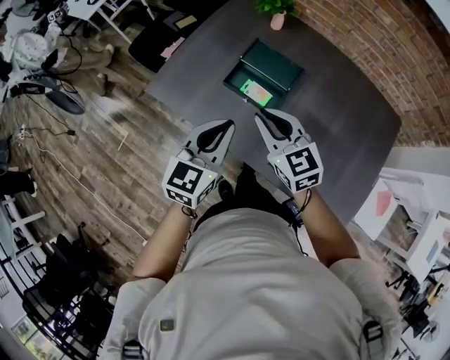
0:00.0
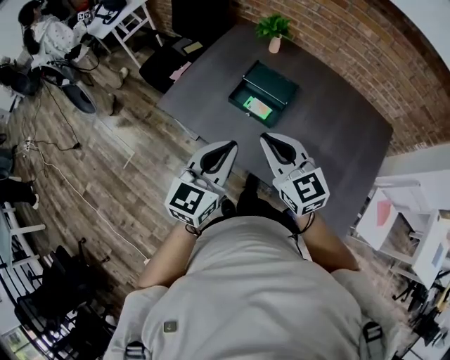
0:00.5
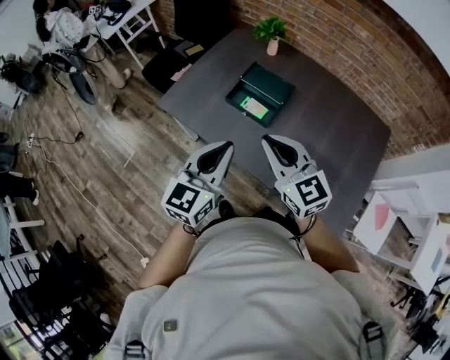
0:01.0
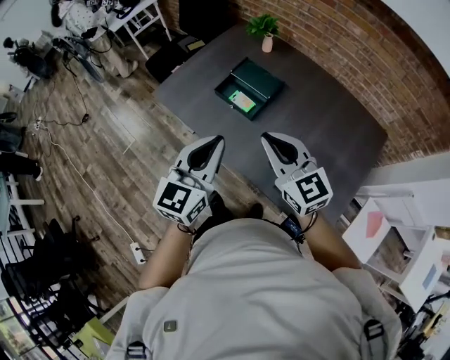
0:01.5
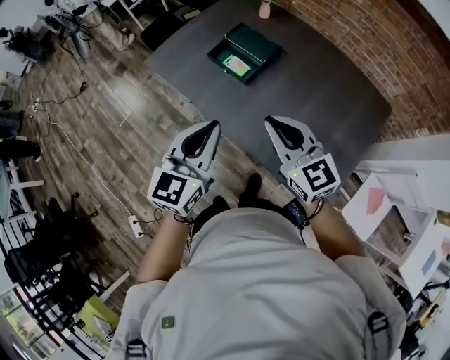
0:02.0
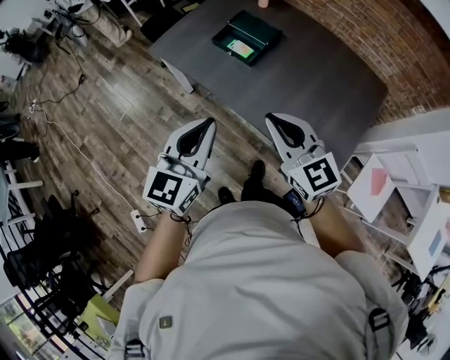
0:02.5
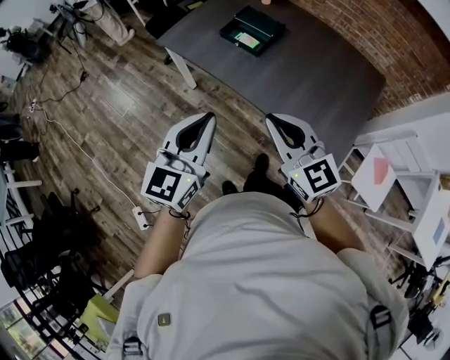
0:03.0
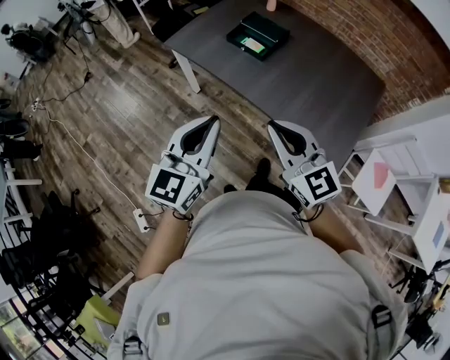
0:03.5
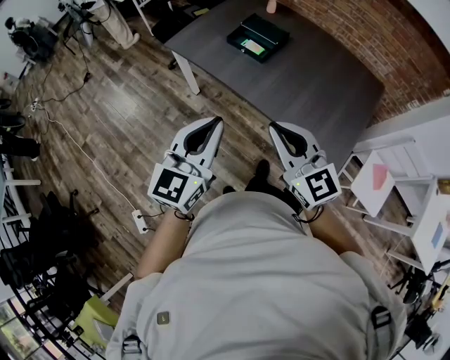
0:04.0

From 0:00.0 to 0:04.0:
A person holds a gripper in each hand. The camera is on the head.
From 0:00.0 to 0:02.0: Both grippers move backward and to the right, some 25 cm.
From 0:02.0 to 0:04.0: Both grippers move backward and to the left, some 25 cm.

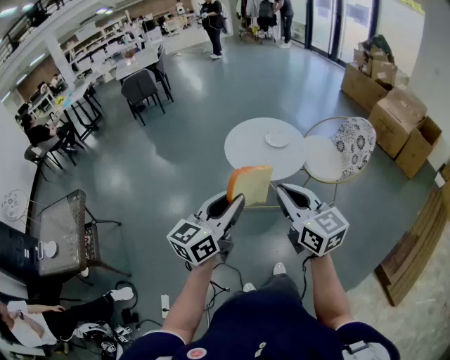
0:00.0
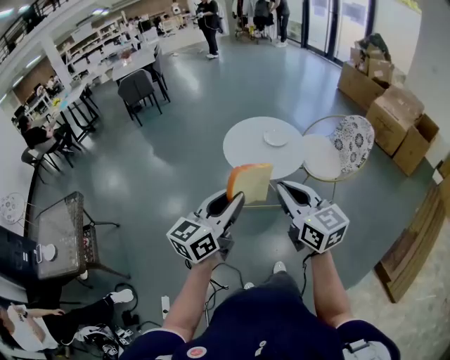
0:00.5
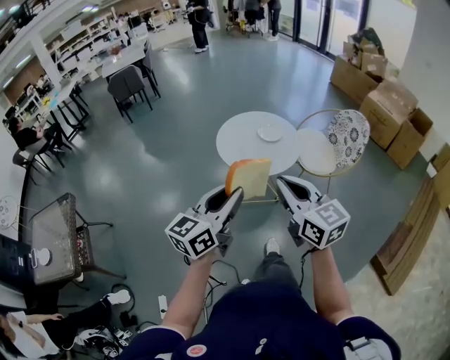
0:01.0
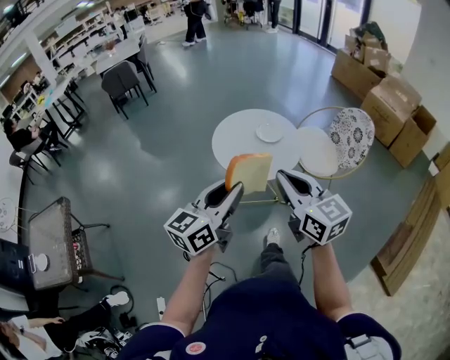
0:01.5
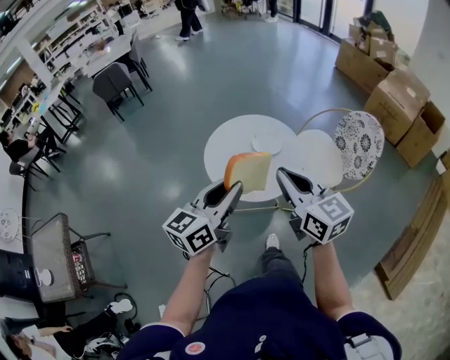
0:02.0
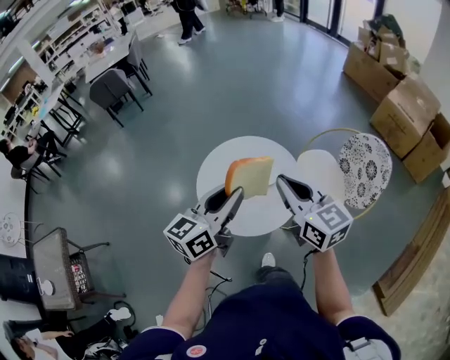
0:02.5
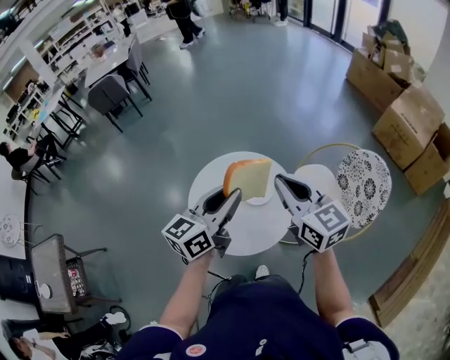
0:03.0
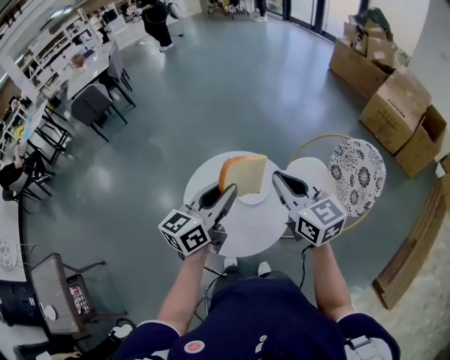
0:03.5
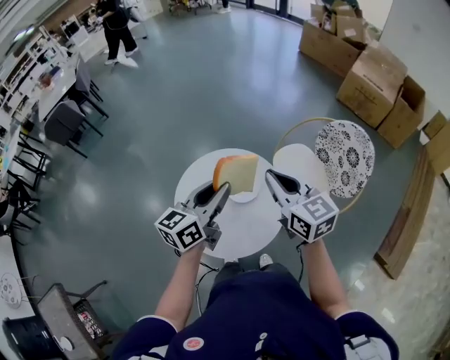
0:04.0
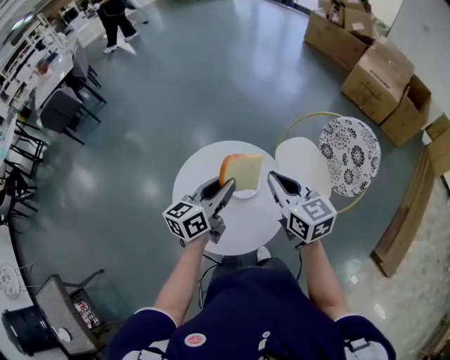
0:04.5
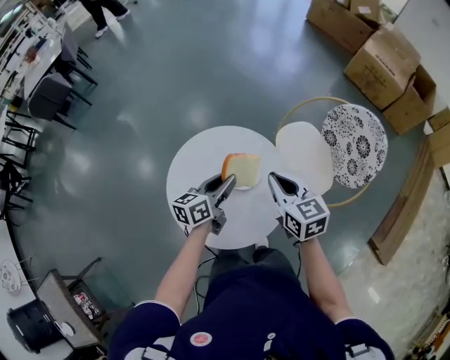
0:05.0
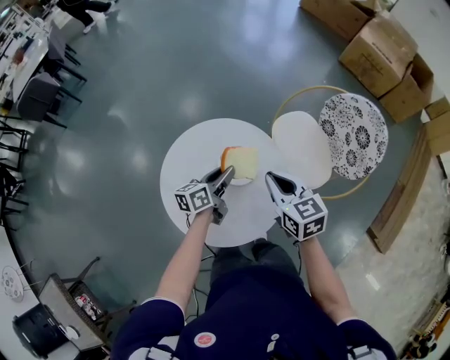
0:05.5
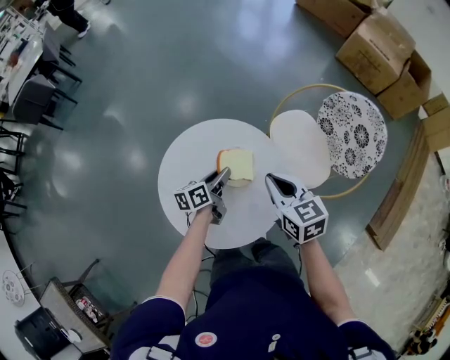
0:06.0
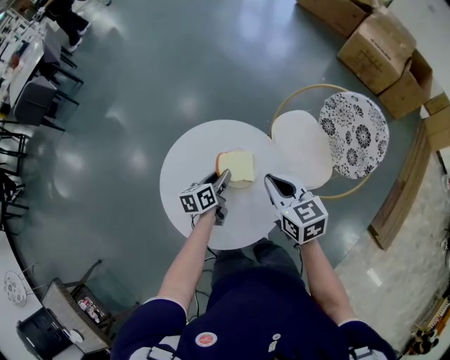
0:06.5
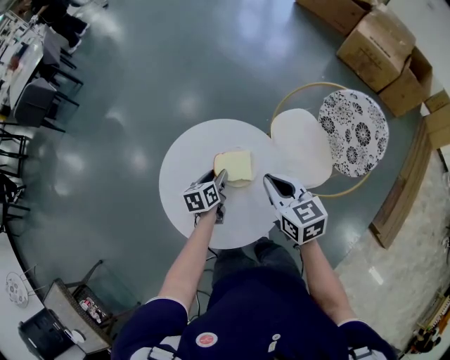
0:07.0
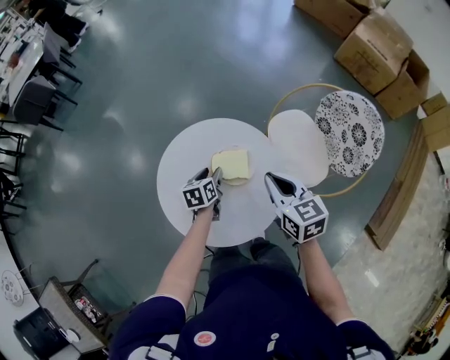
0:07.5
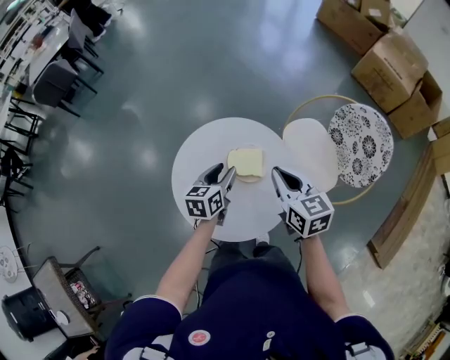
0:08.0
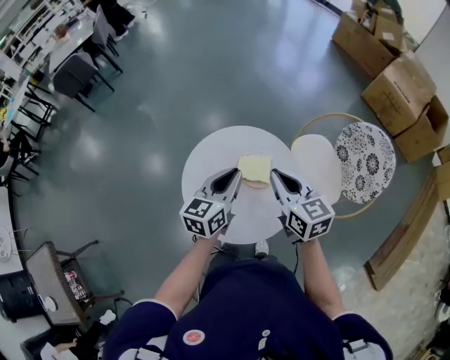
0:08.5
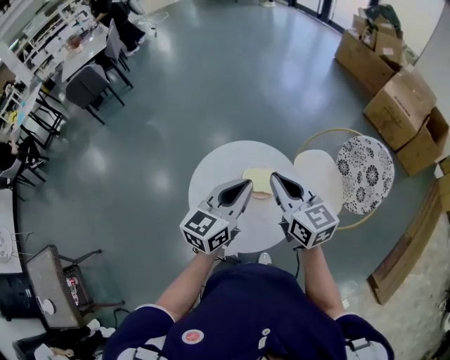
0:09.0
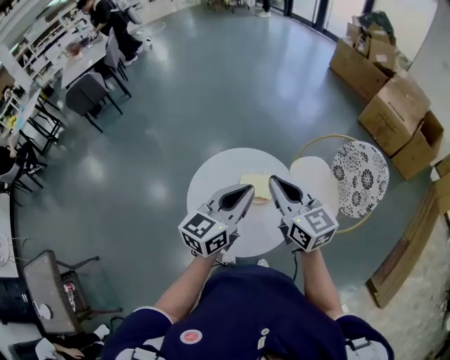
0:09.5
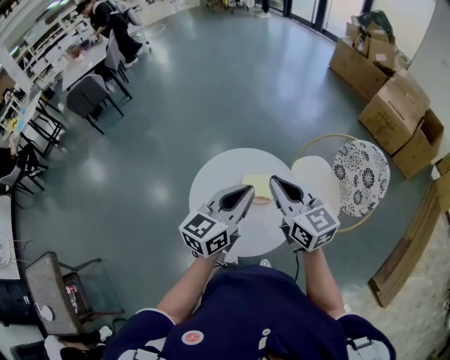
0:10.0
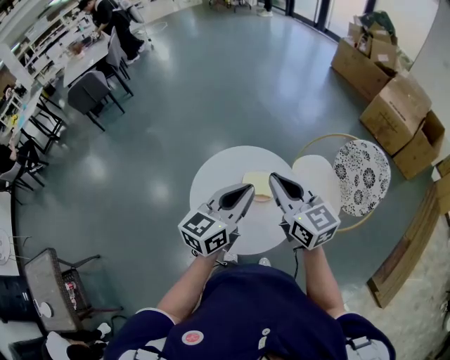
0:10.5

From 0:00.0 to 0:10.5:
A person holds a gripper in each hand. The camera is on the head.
From 0:00.0 to 0:02.0: Both grippers move forward, some 25 cm.
From 0:02.0 to 0:04.0: Both grippers travel together forward, about 25 cm.
From 0:04.0 to 0:06.5: The left gripper goes approximately 30 cm downward, and turns by roughly 40 degrees. Meanwhile the right gripper travels downward by about 15 cm, and changes its angle by some 20 degrees.
From 0:06.5 to 0:08.5: The left gripper travels upward by about 20 cm, and rotates some 30 degrees, while the right gripper goes approximately 5 cm upward.
From 0:08.5 to 0:10.5: The left gripper shifts some 10 cm upward and backward. Meanwhile the right gripper shifts approximately 10 cm upward.

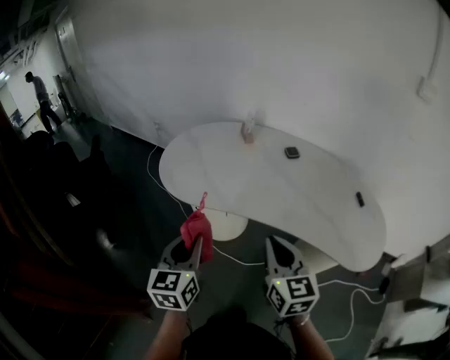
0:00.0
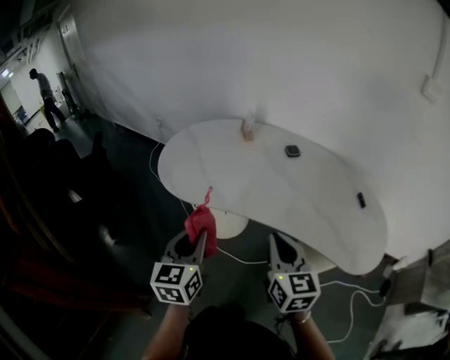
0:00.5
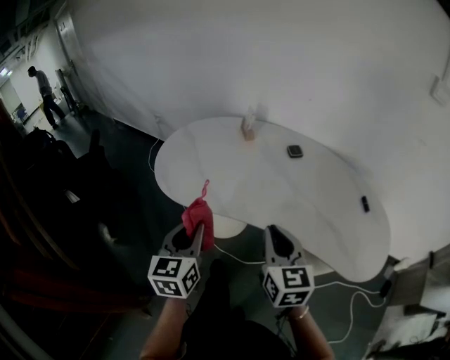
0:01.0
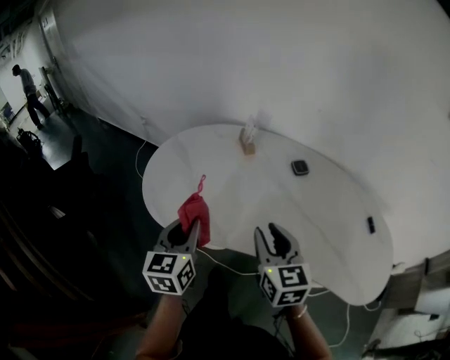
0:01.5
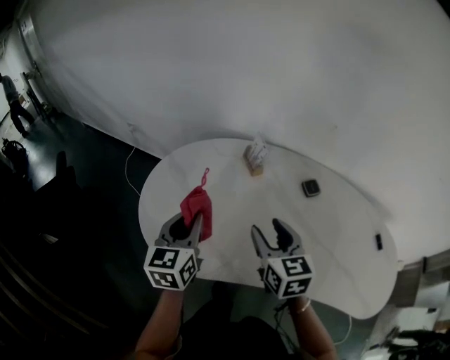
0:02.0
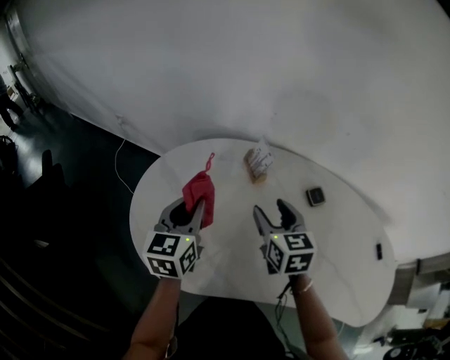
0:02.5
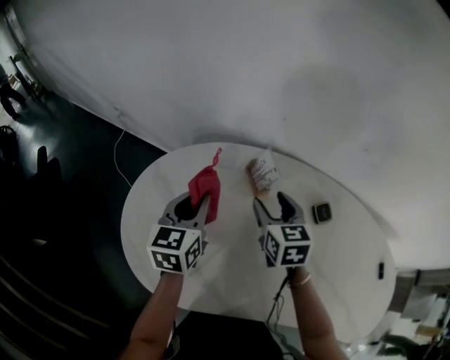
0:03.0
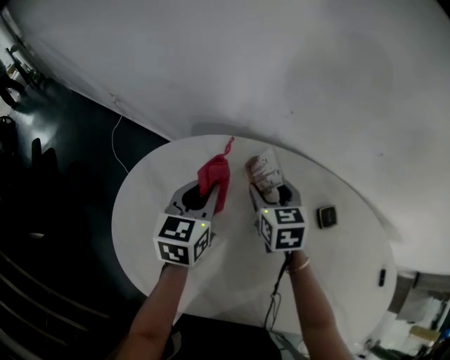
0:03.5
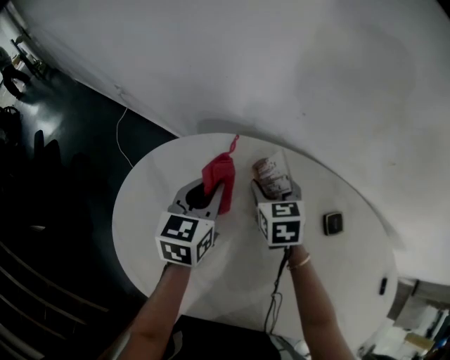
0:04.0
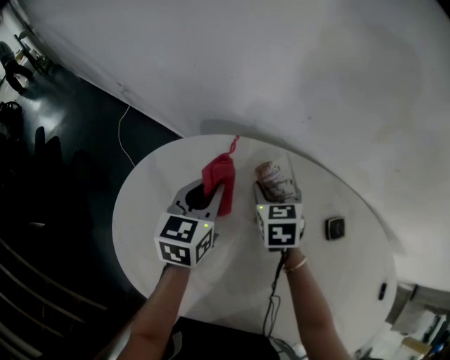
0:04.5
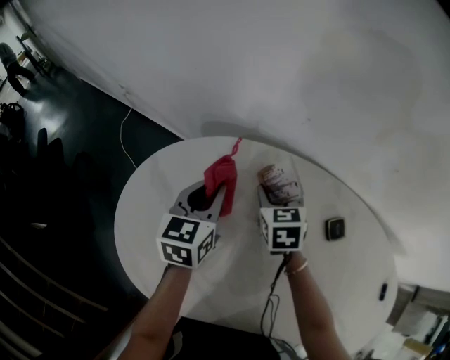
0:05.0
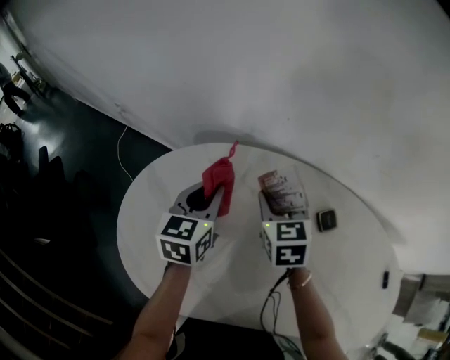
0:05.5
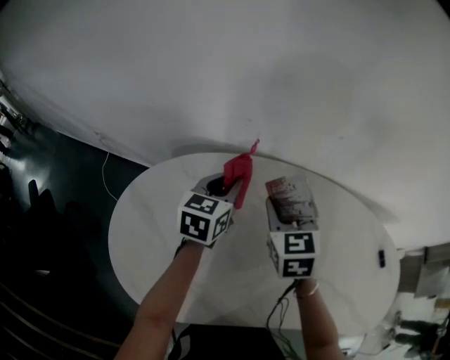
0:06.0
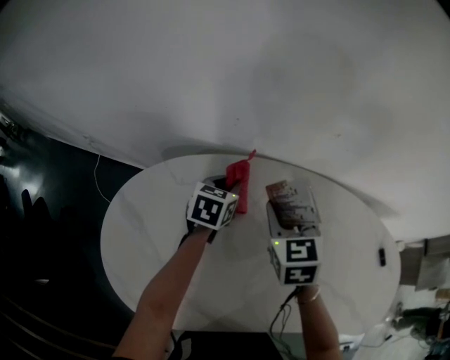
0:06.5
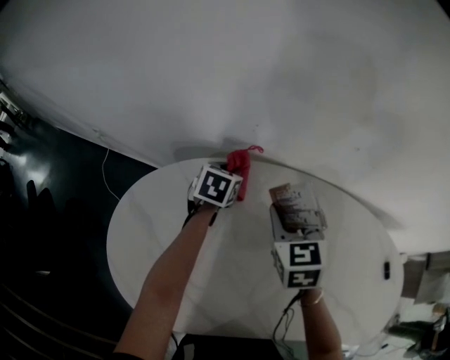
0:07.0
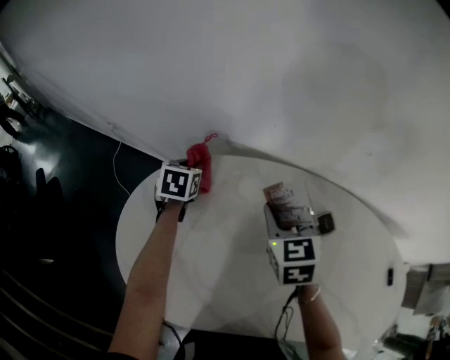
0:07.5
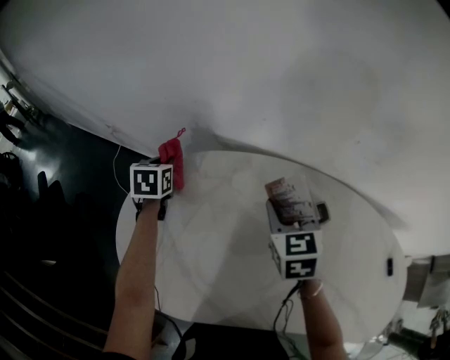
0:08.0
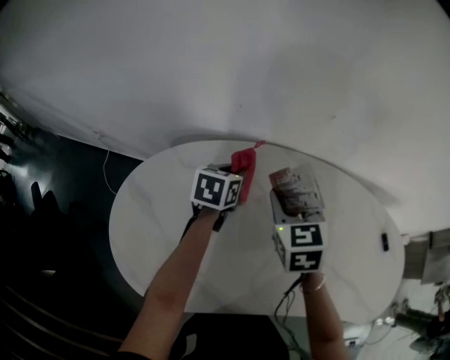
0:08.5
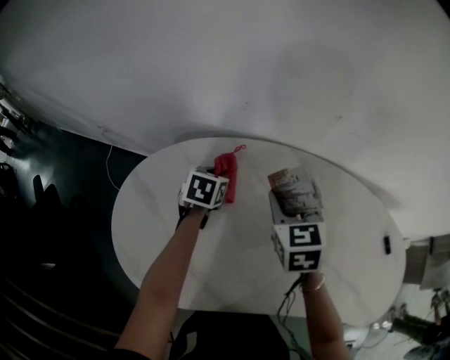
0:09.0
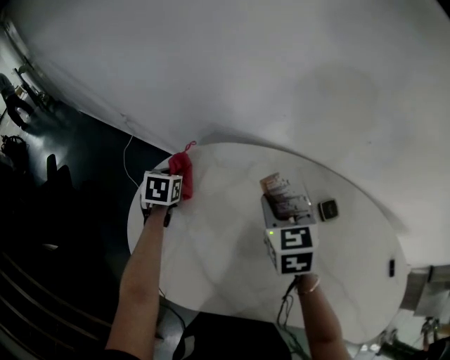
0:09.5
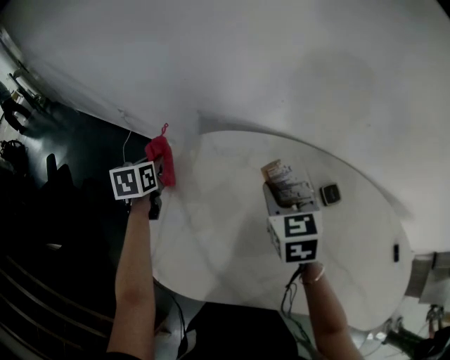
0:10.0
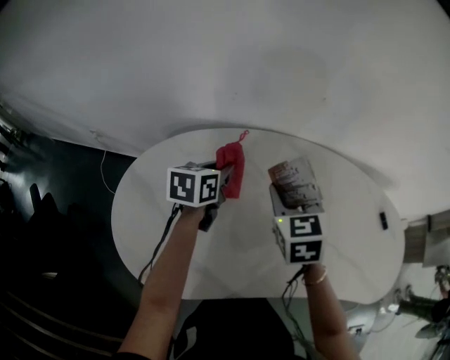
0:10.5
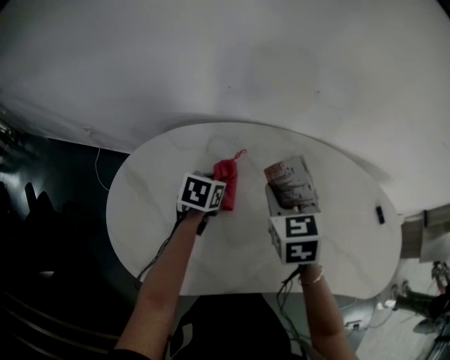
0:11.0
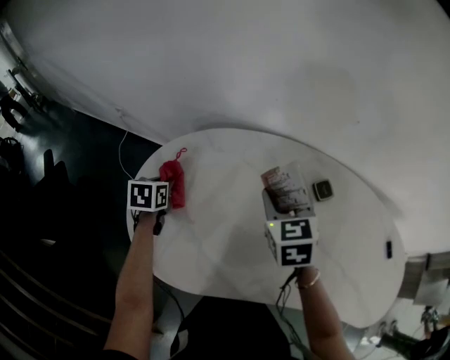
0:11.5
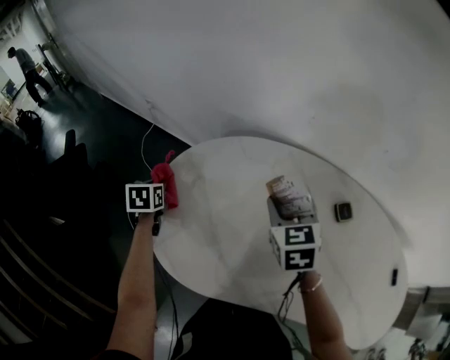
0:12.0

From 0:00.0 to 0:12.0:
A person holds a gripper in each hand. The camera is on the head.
From 0:00.0 to 0:02.0: Both grippers travel together forward, roughly 30 cm. The right gripper opens.
From 0:02.0 to 0:04.0: The left gripper moves forward, roughly 20 cm. The right gripper moves forward and downward, approximately 30 cm, and turns by roughly 20 degrees.
From 0:04.0 to 0:06.0: The left gripper goes about 10 cm to the right, while the right gripper shifts some 15 cm upward, to the right and backward.
From 0:06.0 to 0:08.0: The left gripper goes some 20 cm to the left, and rotates approximately 30 degrees.
From 0:08.0 to 0:10.0: The right gripper ends up some 5 cm from where it was.
